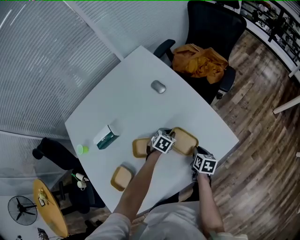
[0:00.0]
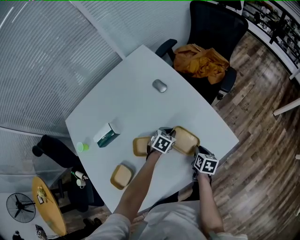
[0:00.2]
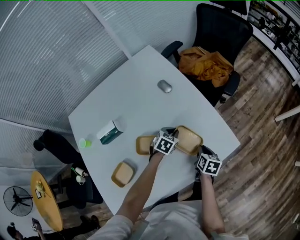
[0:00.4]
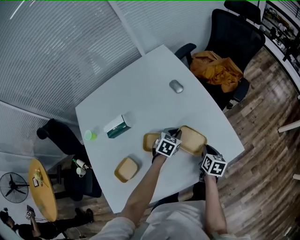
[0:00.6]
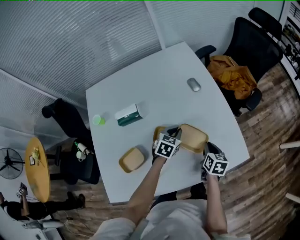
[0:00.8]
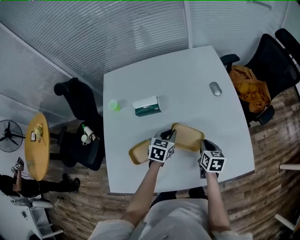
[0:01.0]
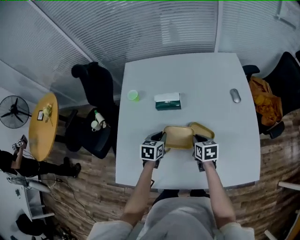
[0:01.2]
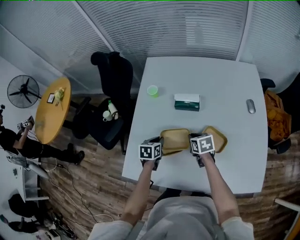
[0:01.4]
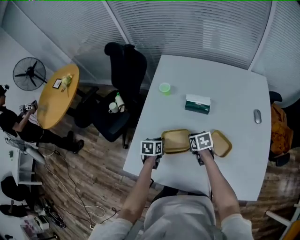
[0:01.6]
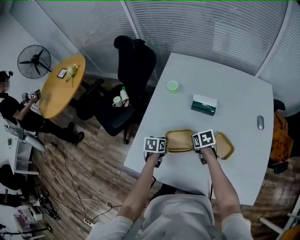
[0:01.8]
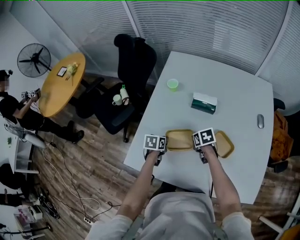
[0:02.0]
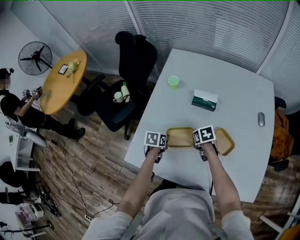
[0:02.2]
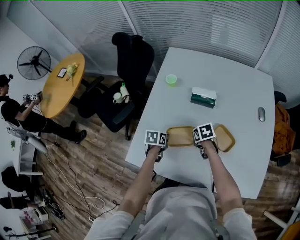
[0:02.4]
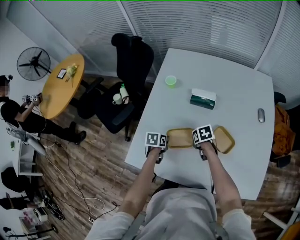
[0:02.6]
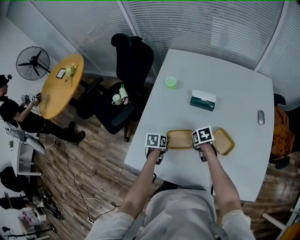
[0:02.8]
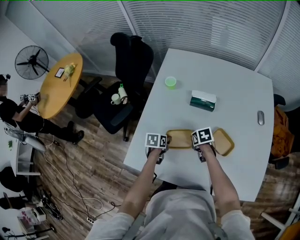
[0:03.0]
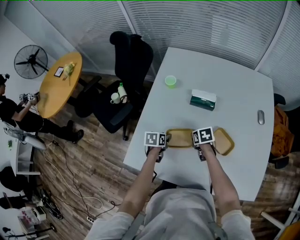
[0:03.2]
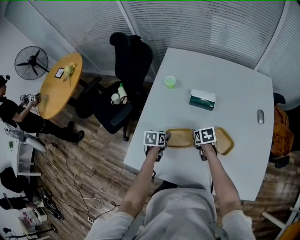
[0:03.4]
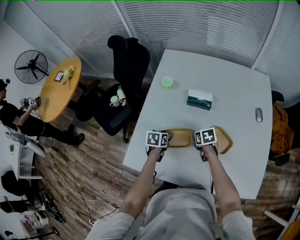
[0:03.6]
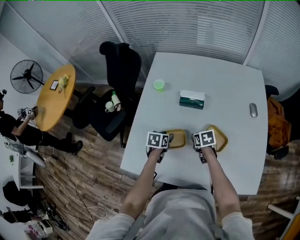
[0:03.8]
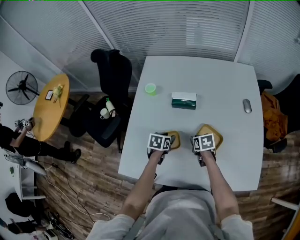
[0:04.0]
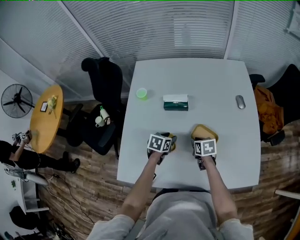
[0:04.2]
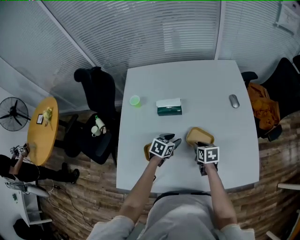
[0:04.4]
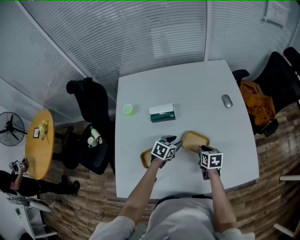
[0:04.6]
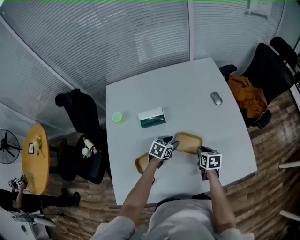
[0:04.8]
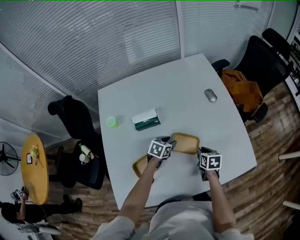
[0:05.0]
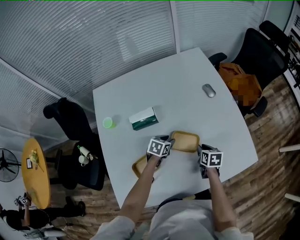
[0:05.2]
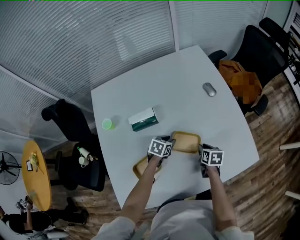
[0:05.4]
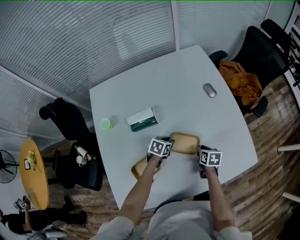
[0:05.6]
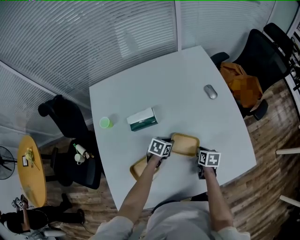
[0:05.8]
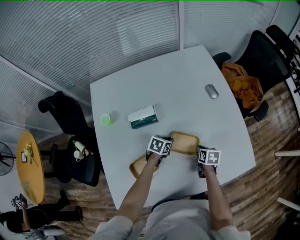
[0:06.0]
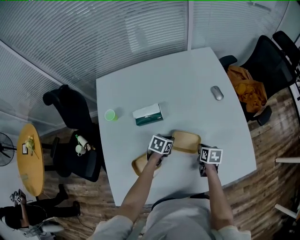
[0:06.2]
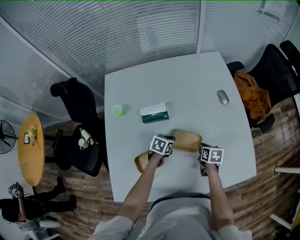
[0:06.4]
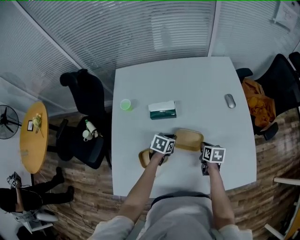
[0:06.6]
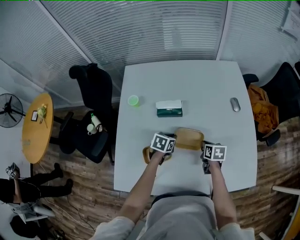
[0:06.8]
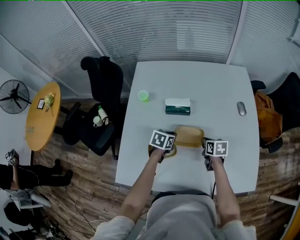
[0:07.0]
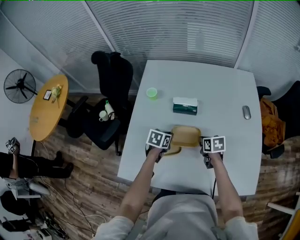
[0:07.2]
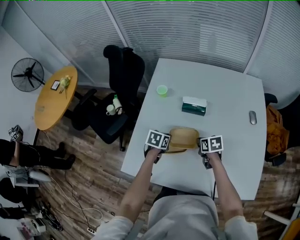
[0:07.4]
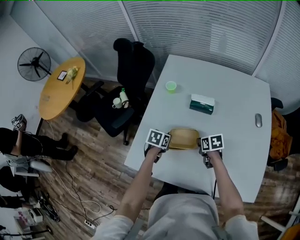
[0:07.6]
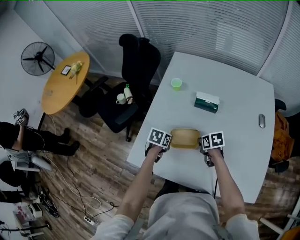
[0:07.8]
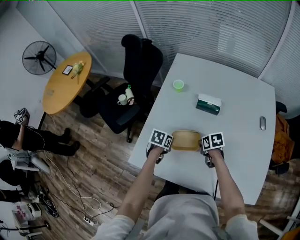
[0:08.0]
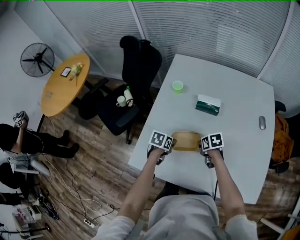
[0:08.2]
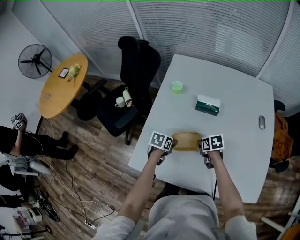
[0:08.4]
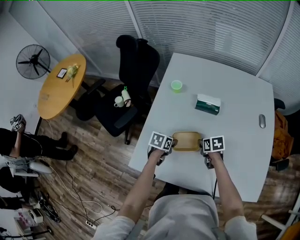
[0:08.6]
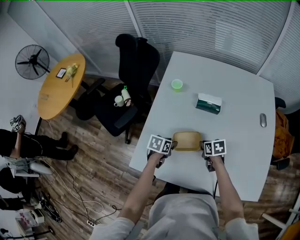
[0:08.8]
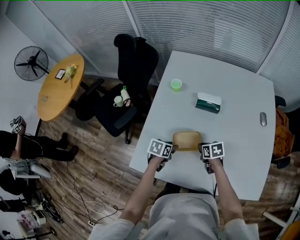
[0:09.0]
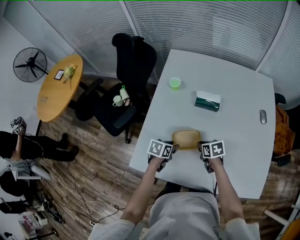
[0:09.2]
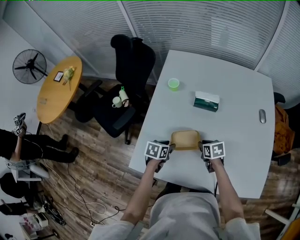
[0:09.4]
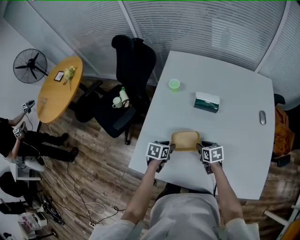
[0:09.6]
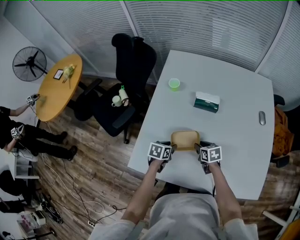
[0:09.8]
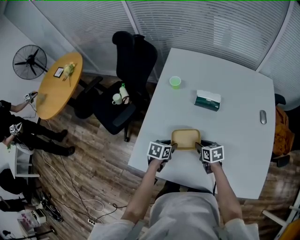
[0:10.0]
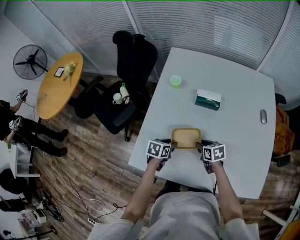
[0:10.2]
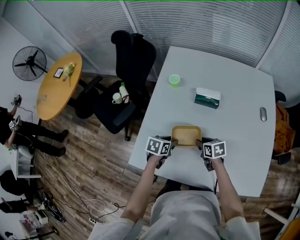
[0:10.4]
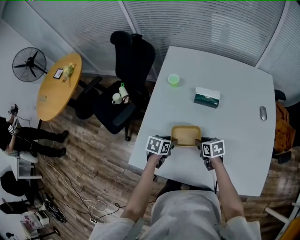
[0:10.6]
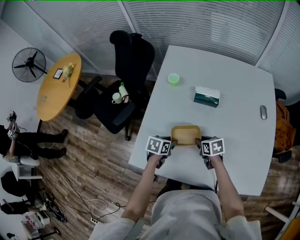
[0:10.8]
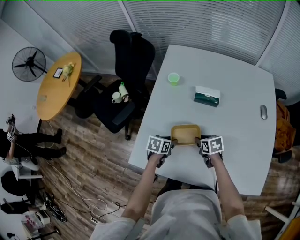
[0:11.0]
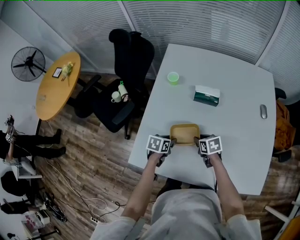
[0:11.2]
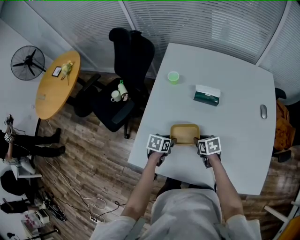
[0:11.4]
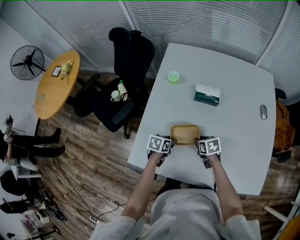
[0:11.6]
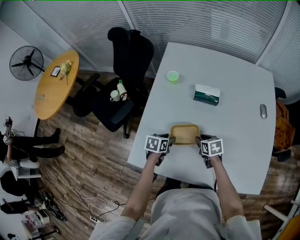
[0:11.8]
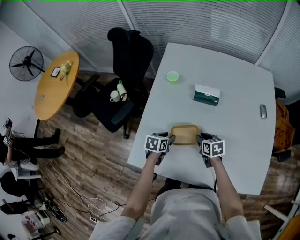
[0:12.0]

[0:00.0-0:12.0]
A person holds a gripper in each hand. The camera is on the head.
0:00.0 to 0:01.6: The two grippers travel together, roughly 50 cm. The right gripper rotates around the line of its fingers by approximately 70 degrees, counterclockwise from behind. The left gripper twists approximately 70 degrees counterclockwise, seen from behind.
0:01.6 to 0:03.0: The left gripper opens its fingers. Meanwhile the right gripper is displaced downward by approximately 5 cm.
0:03.0 to 0:04.4: The left gripper changes place by roughly 20 cm, and changes its angle by approximately 40 degrees. Meanwhile the right gripper shifts by about 15 cm, and rotates approximately 30 degrees.
0:04.4 to 0:06.0: The right gripper shifts approximately 10 cm to the right and downward, and rotates some 30 degrees. Meanwhile the left gripper shifts some 15 cm downward, forward and to the right, and closes.
0:06.0 to 0:07.6: The right gripper changes place by some 25 cm, and swivels roughly 50 degrees; the left gripper changes place by some 30 cm, and swivels roughly 40 degrees.
0:07.6 to 0:09.0: The right gripper moves approximately 5 cm. The left gripper changes place by about 5 cm, and opens.
0:09.0 to 0:12.0: There are only small adjustments of the grippers.

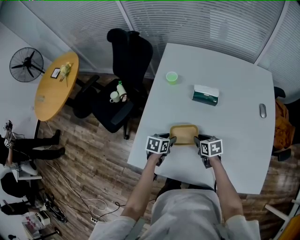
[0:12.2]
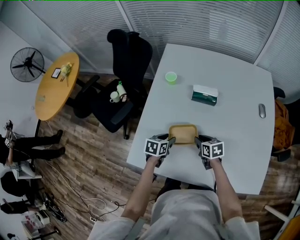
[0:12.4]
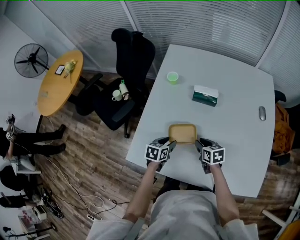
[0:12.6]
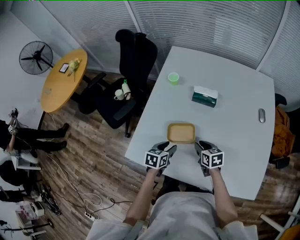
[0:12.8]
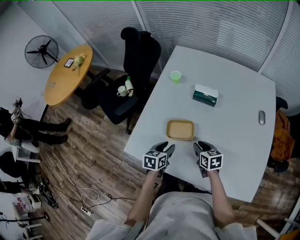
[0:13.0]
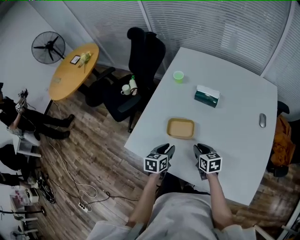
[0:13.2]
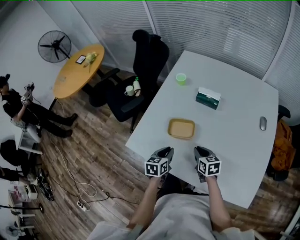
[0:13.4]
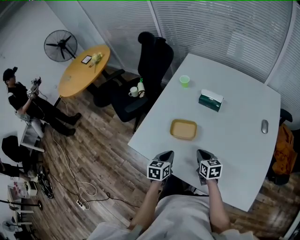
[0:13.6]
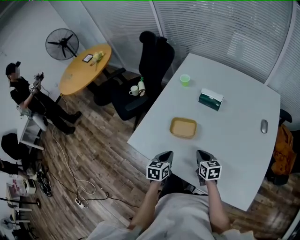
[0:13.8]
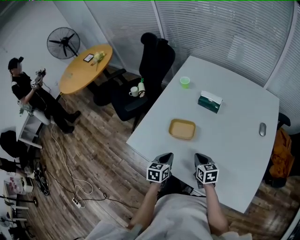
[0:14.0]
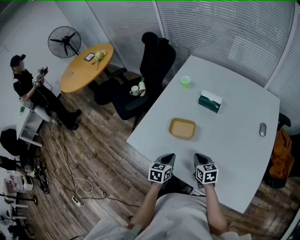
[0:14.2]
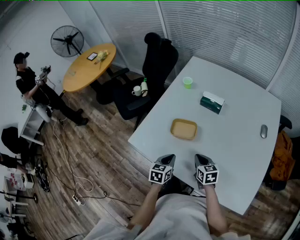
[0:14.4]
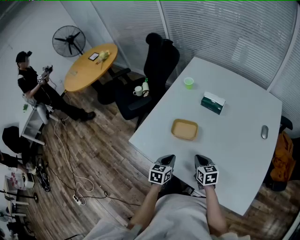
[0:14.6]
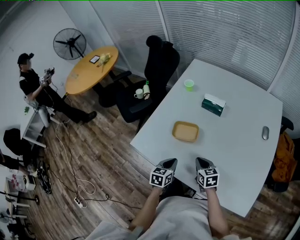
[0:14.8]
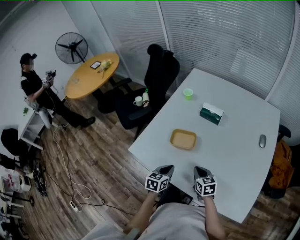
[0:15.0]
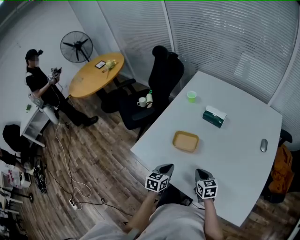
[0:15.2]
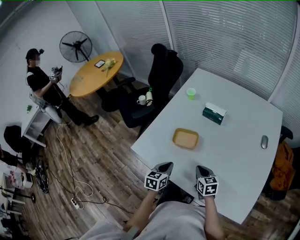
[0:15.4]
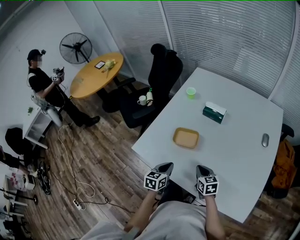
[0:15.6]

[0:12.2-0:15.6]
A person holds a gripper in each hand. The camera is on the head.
0:12.2 to 0:13.8: The grippers both shift backward by about 15 cm. The right gripper closes its fingers. The left gripper swivels approximately 30 degrees, and closes.
0:13.8 to 0:15.6: The grippers move only a little.

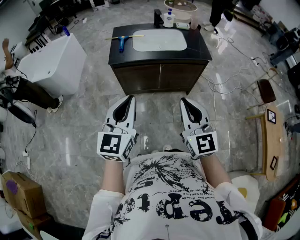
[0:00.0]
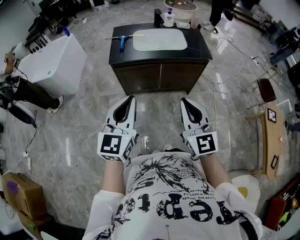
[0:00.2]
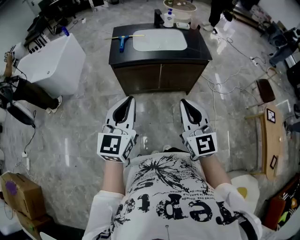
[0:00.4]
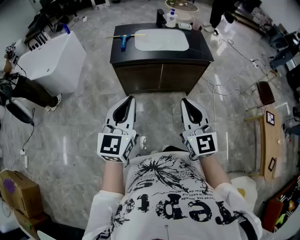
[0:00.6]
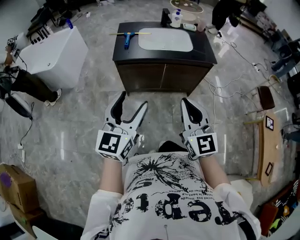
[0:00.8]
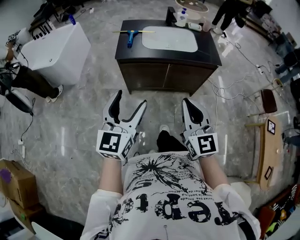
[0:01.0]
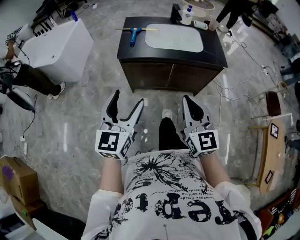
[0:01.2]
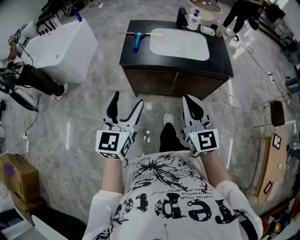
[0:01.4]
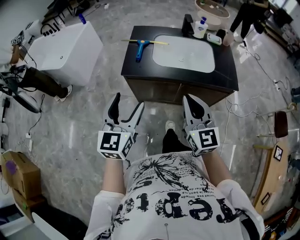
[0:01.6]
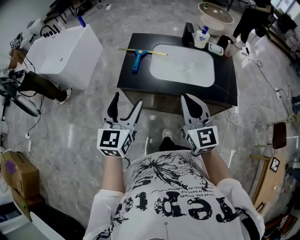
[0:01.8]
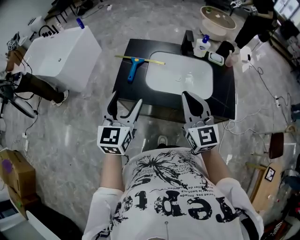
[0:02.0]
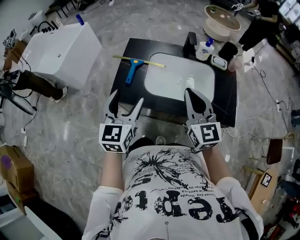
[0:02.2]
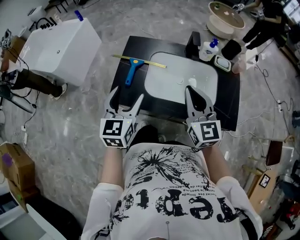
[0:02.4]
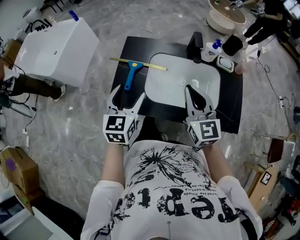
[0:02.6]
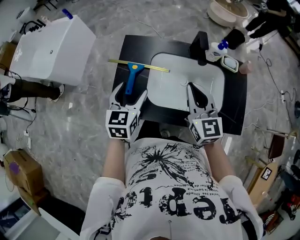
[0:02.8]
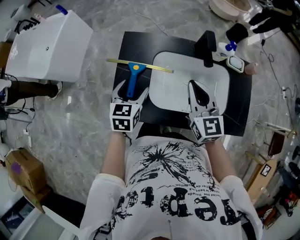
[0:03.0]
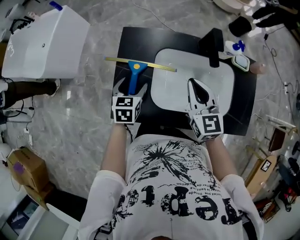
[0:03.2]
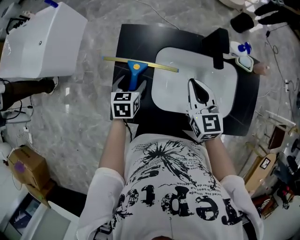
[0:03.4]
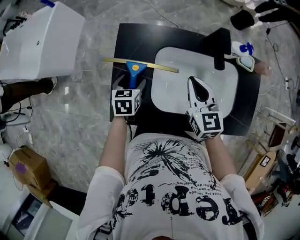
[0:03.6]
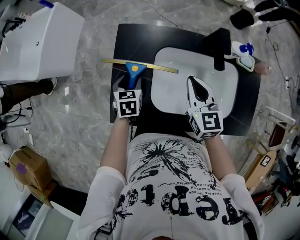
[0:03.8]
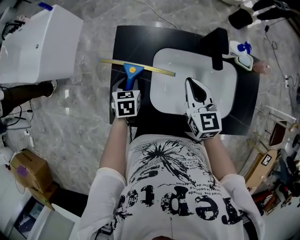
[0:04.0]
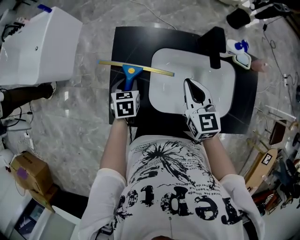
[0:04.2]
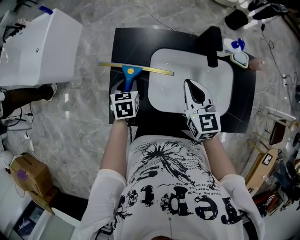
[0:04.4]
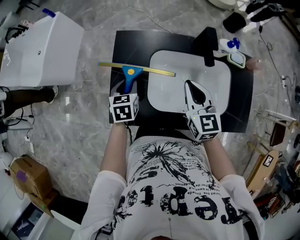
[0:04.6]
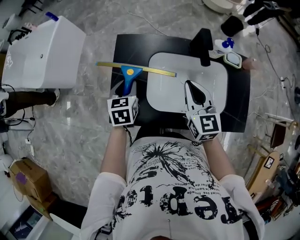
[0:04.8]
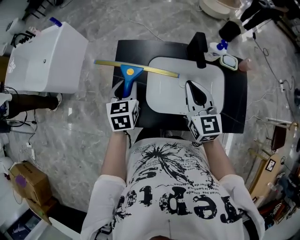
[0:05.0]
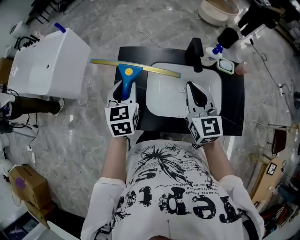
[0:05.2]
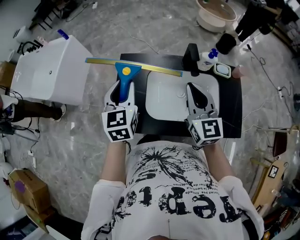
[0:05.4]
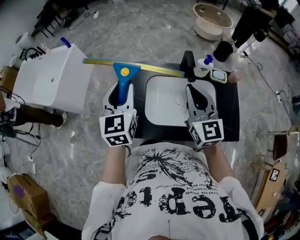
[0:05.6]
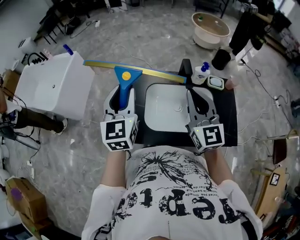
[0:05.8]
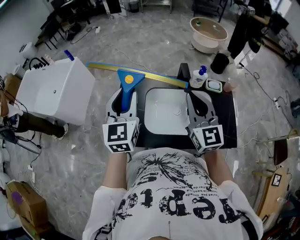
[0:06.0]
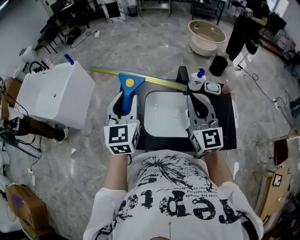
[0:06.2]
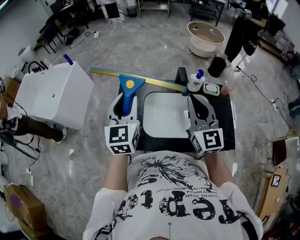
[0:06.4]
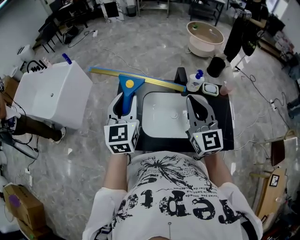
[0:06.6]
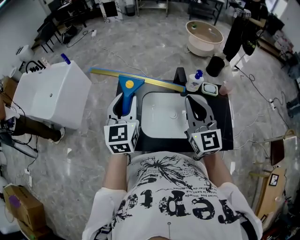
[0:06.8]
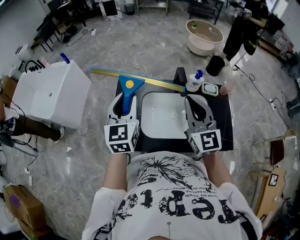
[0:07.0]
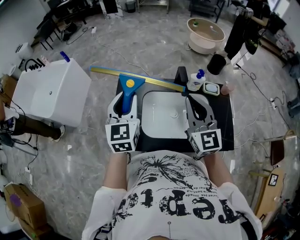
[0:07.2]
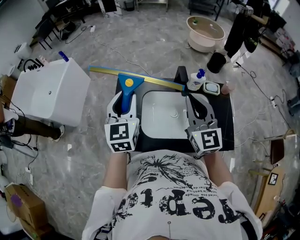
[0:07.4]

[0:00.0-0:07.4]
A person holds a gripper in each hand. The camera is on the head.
0:00.0 to 0:01.4: The left gripper travels forward and to the left by approximately 15 cm, and opens its fingers. The right gripper heads forward, covering some 20 cm.
0:01.4 to 0:03.0: The two grippers travel together, forward, roughly 60 cm. The left gripper turns by some 30 degrees.
0:03.0 to 0:04.4: Both grippers move downward and forward, roughly 10 cm. The left gripper closes up.
0:04.4 to 0:06.0: The right gripper travels upward and backward by approximately 25 cm, and turns by roughly 30 degrees; the left gripper shifts roughly 40 cm upward, and points its fingers approximately 50 degrees further upward.
0:06.0 to 0:07.4: The left gripper moves some 5 cm.

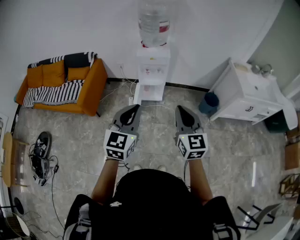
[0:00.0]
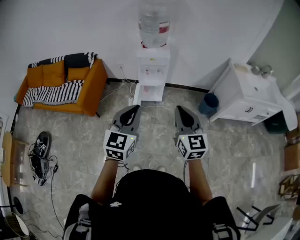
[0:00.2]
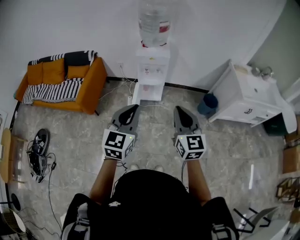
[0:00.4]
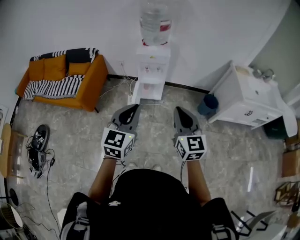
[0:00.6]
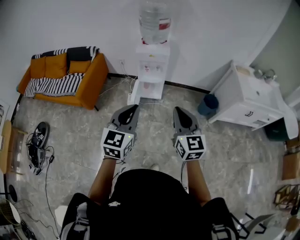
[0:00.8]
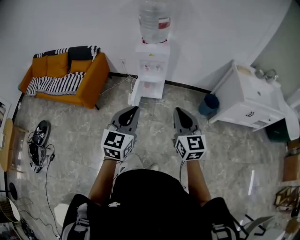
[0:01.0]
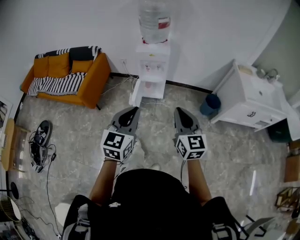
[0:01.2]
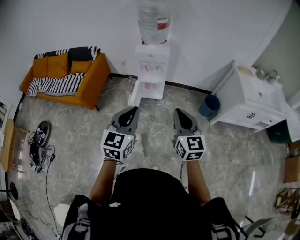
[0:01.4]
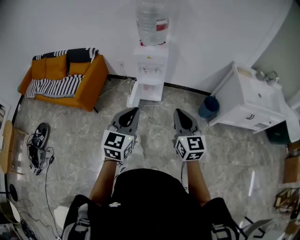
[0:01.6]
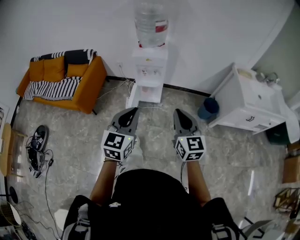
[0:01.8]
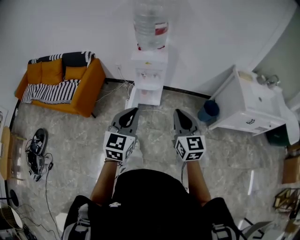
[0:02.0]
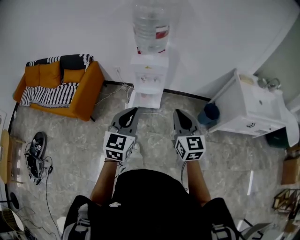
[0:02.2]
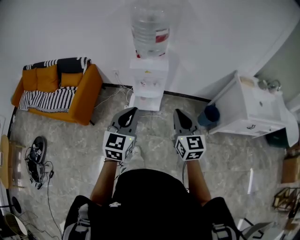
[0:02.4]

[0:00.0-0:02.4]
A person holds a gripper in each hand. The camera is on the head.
0:00.0 to 0:01.2: The grippers both shift to the right by some 5 cm.
0:01.2 to 0:02.4: Both grippers move forward, approximately 20 cm.
